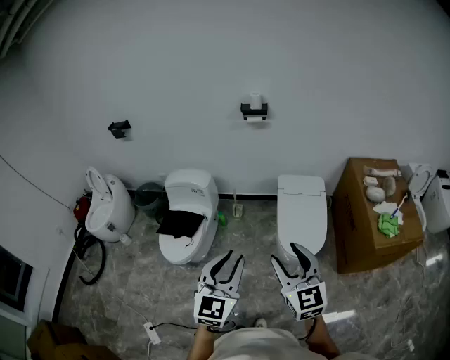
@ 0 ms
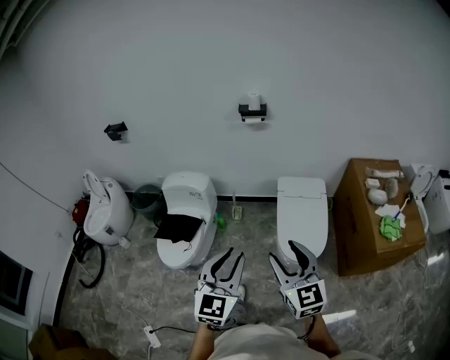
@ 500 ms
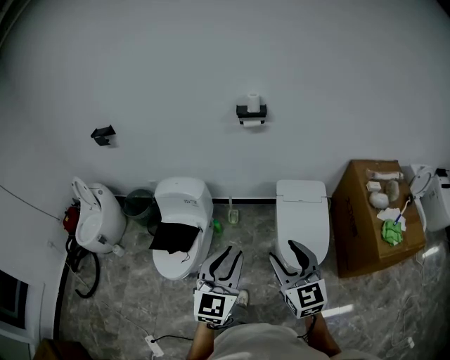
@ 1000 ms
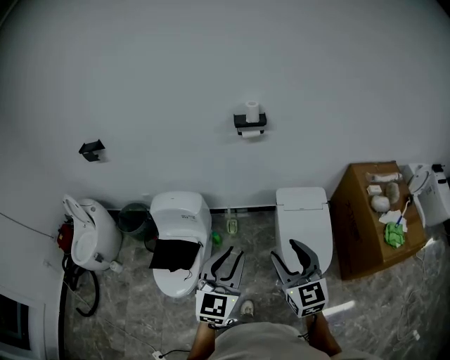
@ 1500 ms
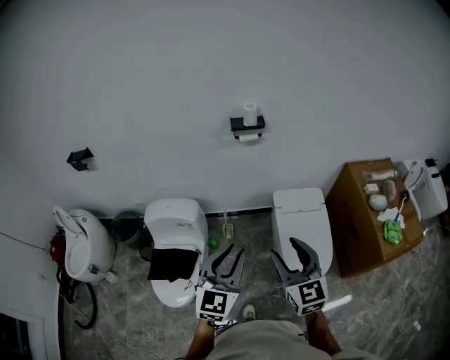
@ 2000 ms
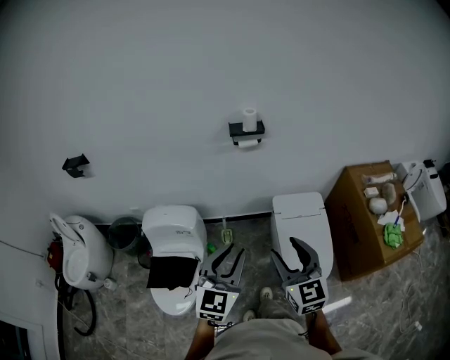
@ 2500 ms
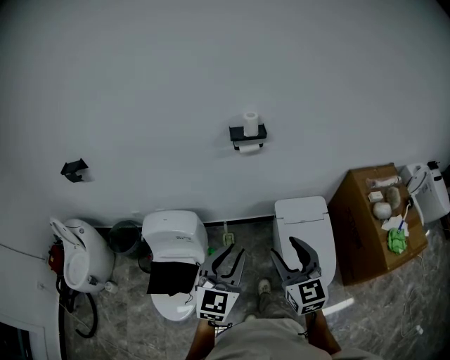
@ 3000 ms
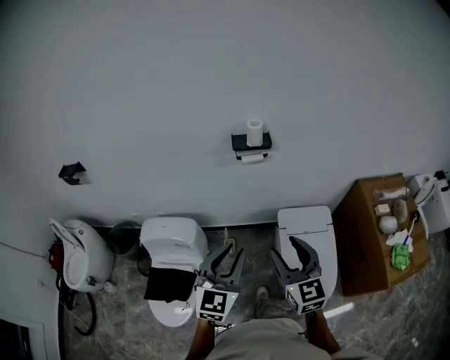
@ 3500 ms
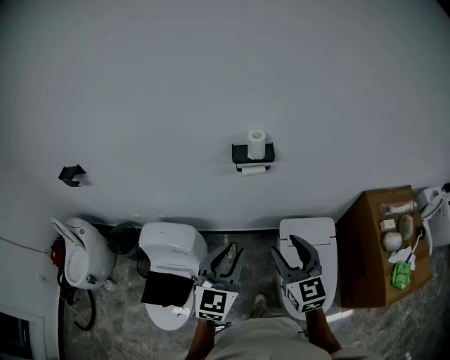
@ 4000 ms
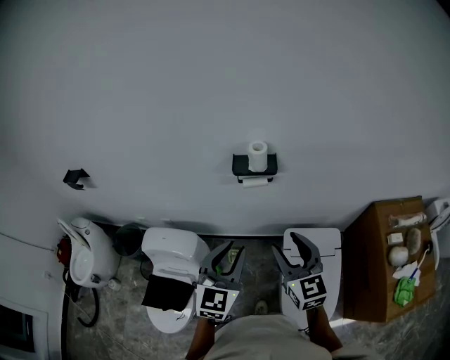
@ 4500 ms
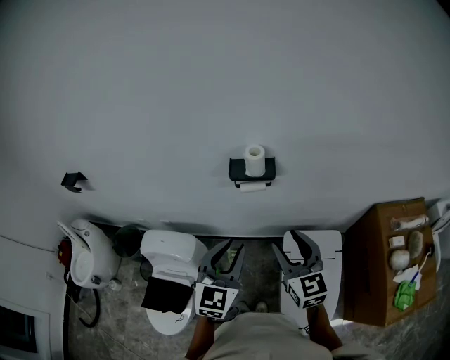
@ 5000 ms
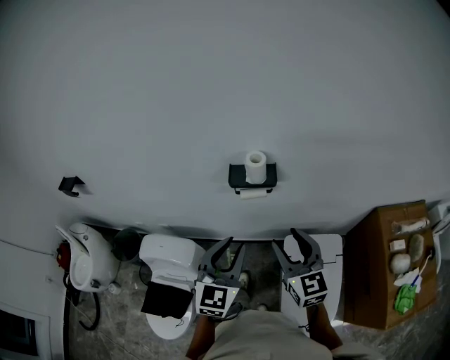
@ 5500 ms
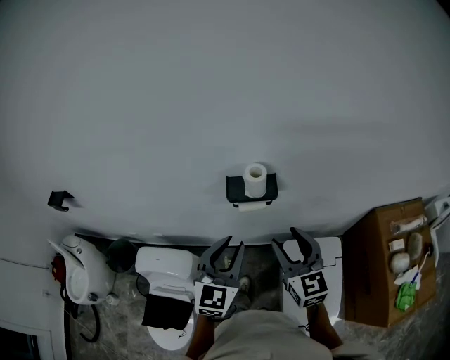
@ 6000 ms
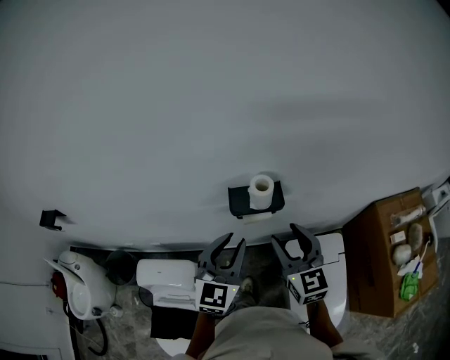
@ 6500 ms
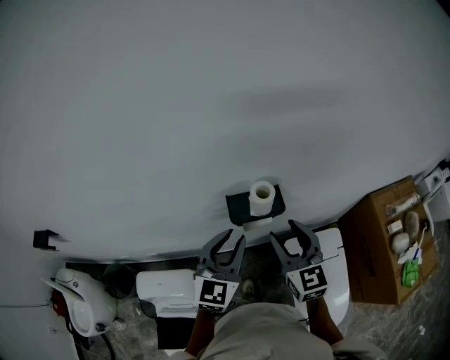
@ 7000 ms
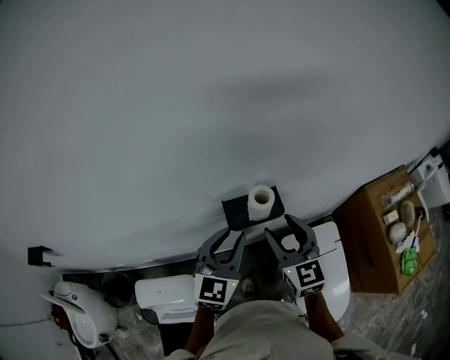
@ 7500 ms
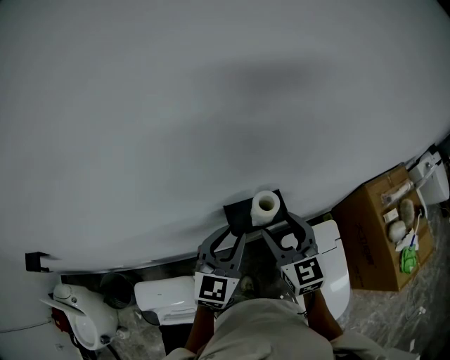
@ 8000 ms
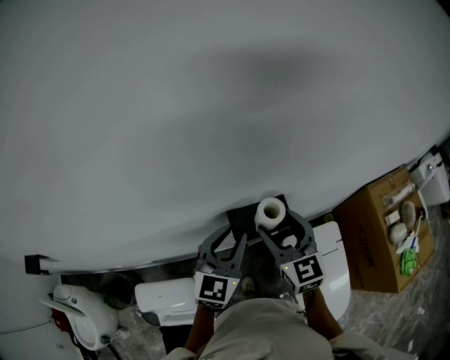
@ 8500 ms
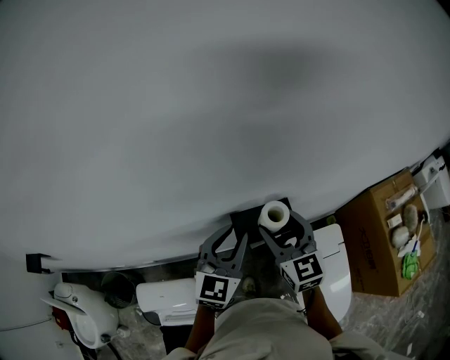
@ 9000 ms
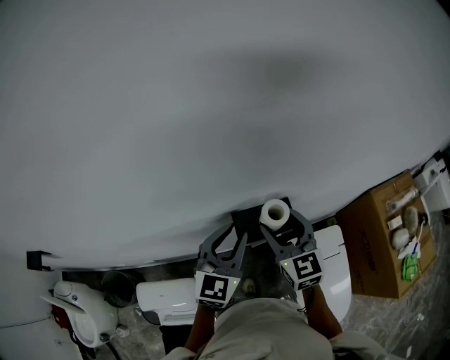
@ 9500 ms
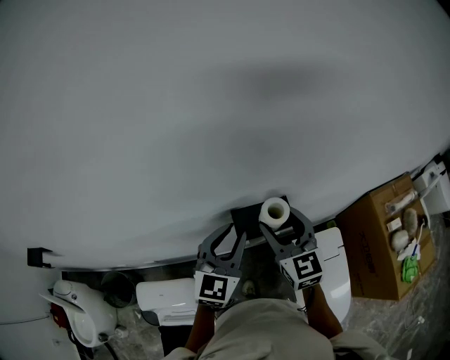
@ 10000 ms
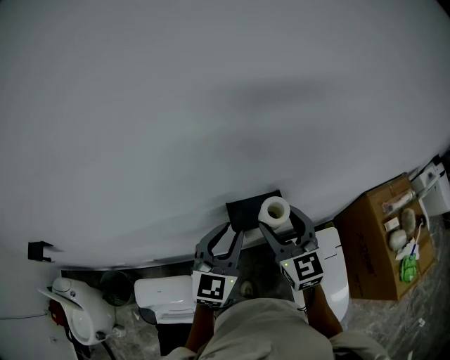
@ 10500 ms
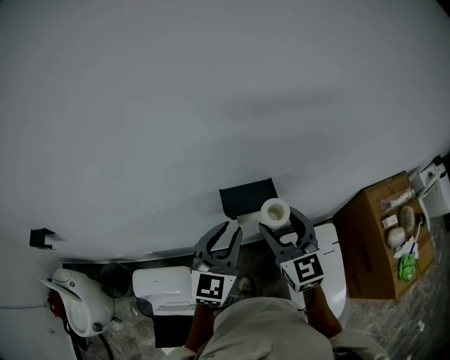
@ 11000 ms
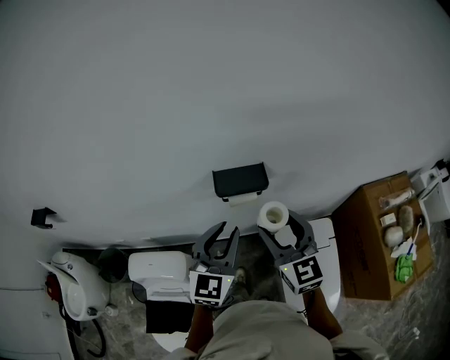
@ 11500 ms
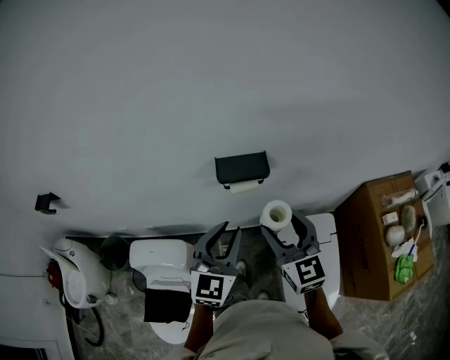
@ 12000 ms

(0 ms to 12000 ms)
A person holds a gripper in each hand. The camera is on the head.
0 ms - 2000 ms: The grippers both shift forward by roughly 30 cm.
2000 ms - 4000 ms: Both grippers travel together forward, roughly 25 cm.
4000 ms - 6000 ms: The grippers both shift forward by some 20 cm.
6000 ms - 8000 ms: The left gripper is displaced forward by roughly 15 cm; the right gripper goes some 15 cm forward and to the left.
8000 ms - 10000 ms: The grippers stay close to where they were, moving slightly.
10000 ms - 12000 ms: The two grippers go some 15 cm backward.

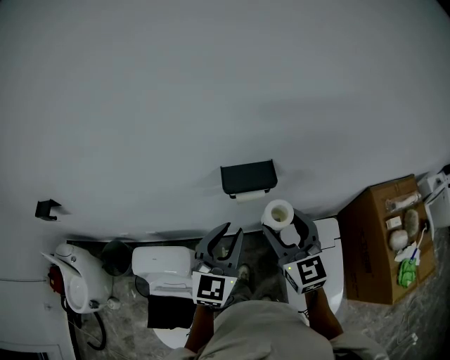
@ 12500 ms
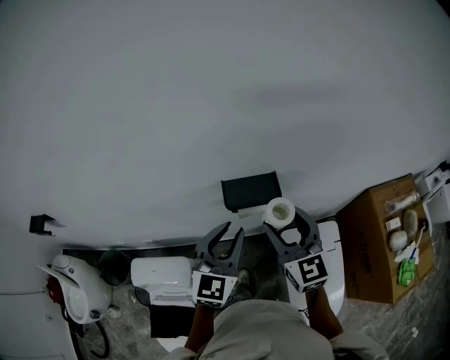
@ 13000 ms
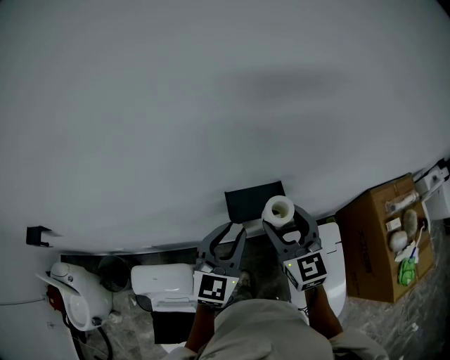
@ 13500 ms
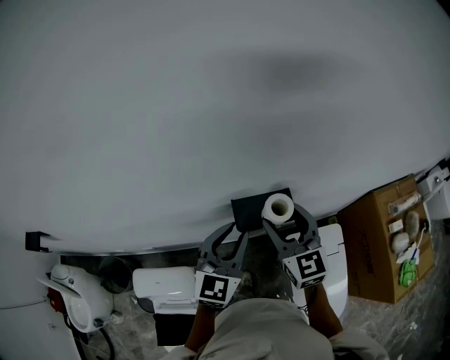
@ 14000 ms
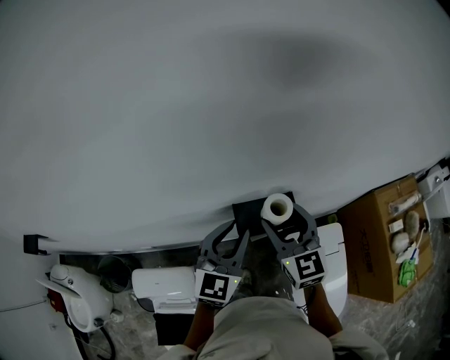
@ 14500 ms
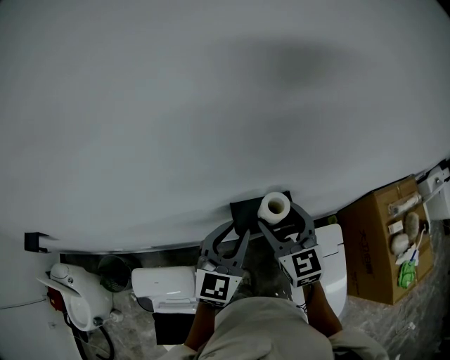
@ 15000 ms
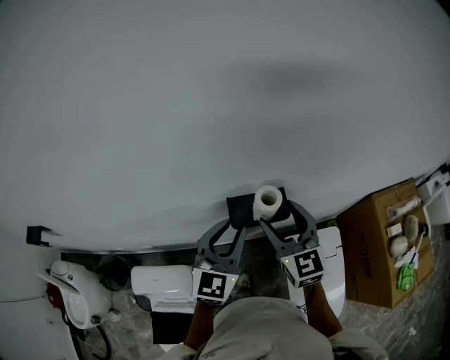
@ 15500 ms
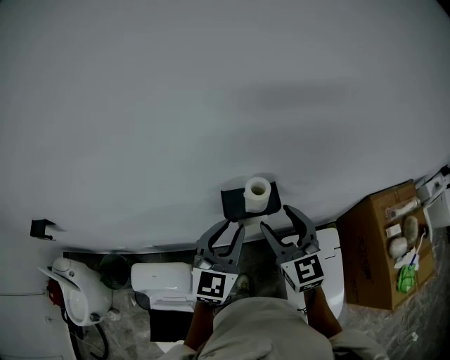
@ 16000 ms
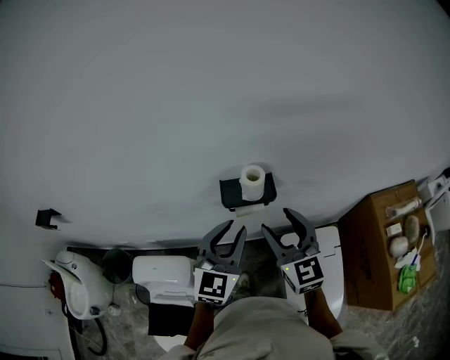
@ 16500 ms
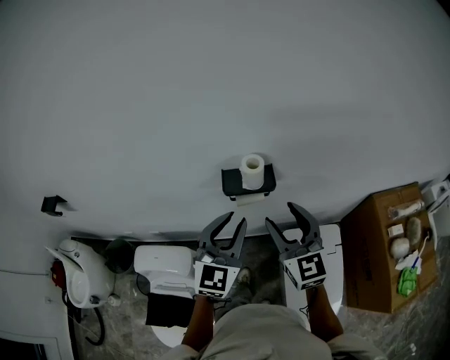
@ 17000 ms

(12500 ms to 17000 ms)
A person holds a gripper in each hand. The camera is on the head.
12500 ms - 14500 ms: Both grippers move forward, about 15 cm.
14500 ms - 17000 ms: The two grippers go approximately 15 cm backward and to the right.

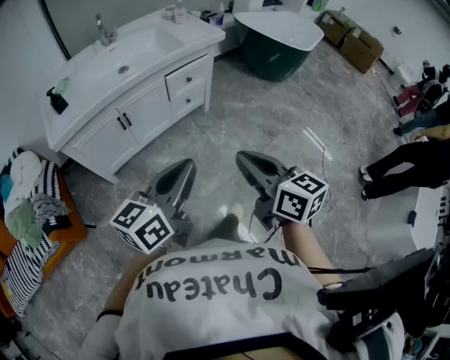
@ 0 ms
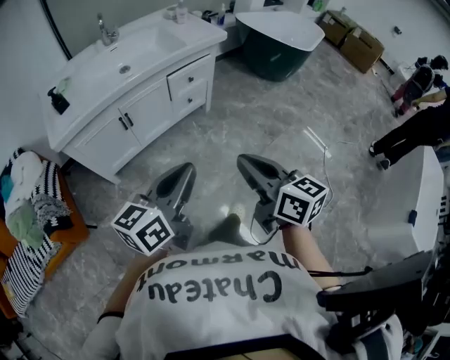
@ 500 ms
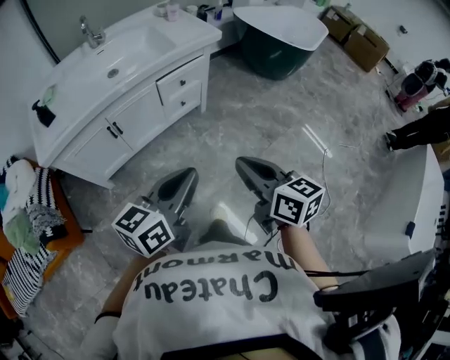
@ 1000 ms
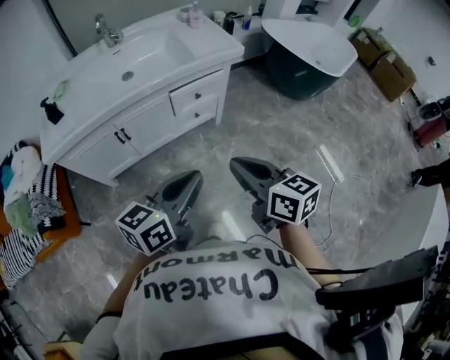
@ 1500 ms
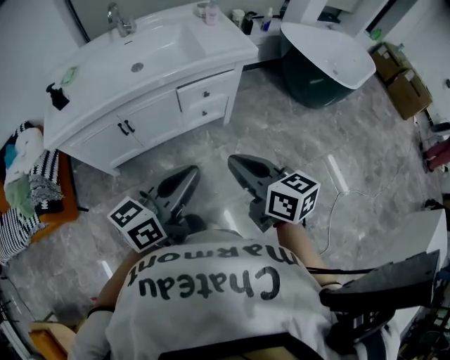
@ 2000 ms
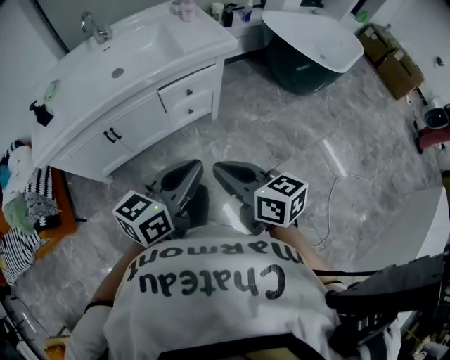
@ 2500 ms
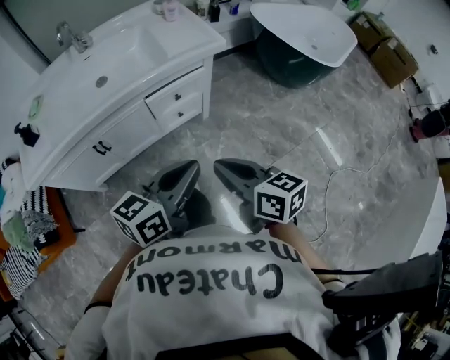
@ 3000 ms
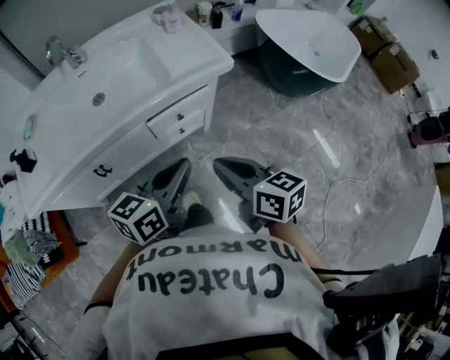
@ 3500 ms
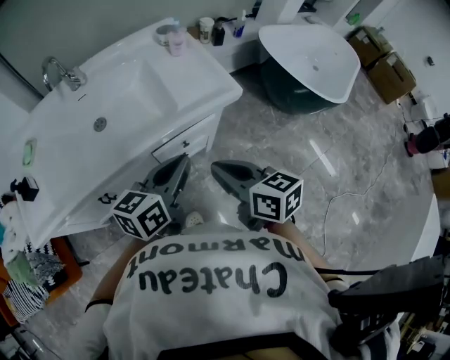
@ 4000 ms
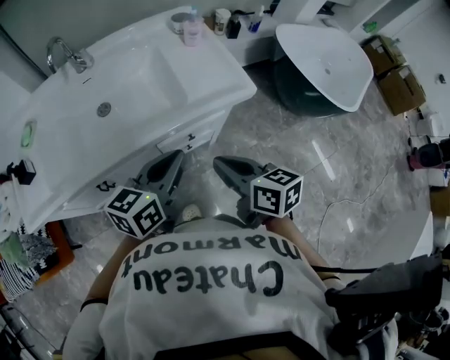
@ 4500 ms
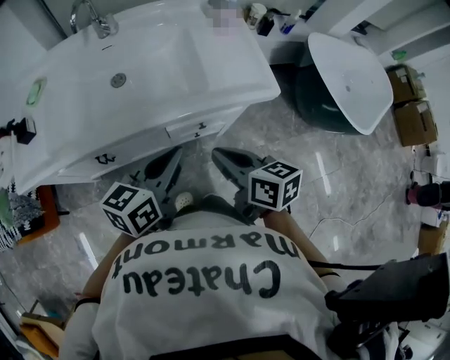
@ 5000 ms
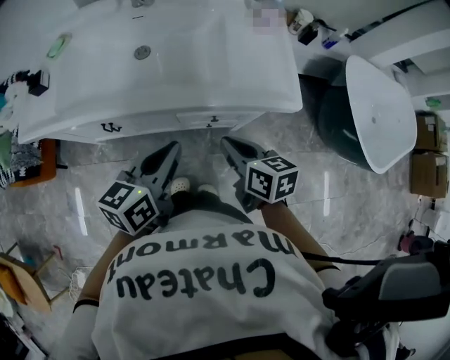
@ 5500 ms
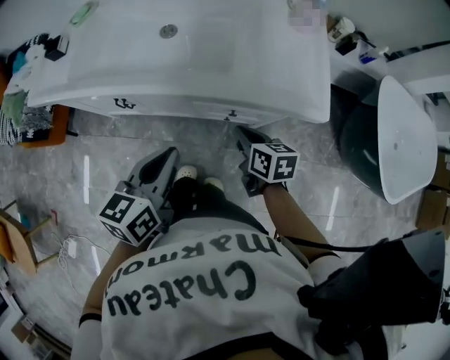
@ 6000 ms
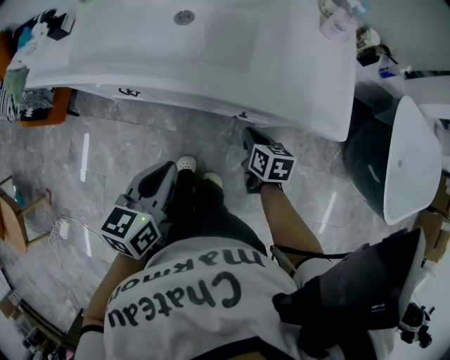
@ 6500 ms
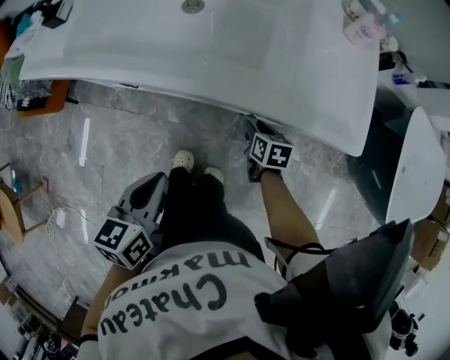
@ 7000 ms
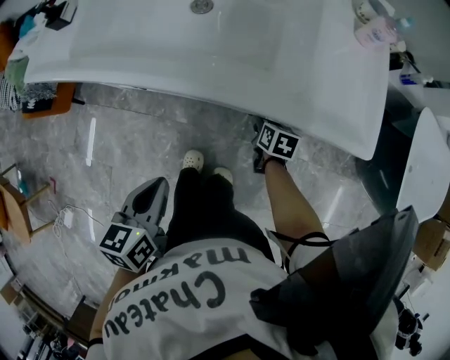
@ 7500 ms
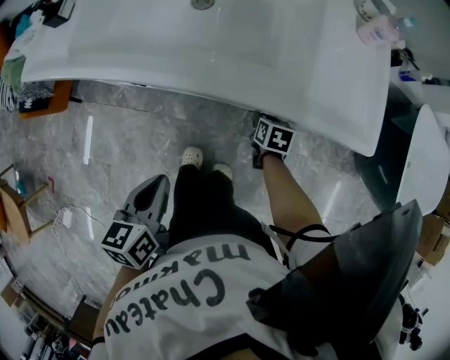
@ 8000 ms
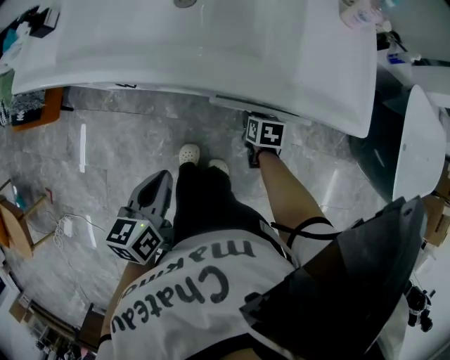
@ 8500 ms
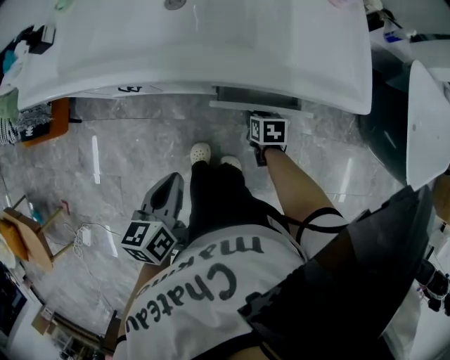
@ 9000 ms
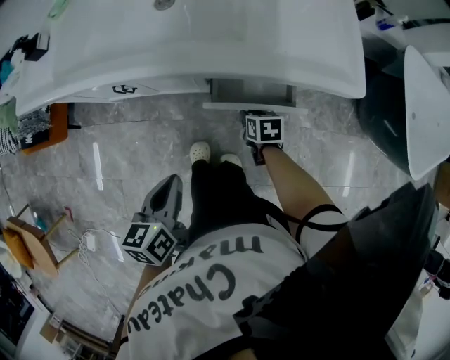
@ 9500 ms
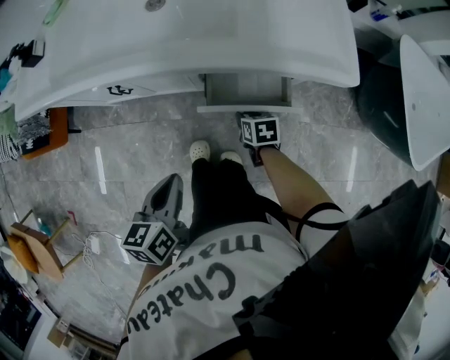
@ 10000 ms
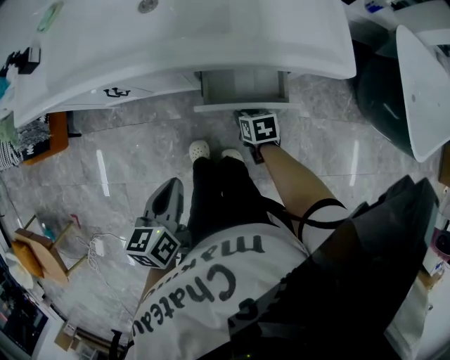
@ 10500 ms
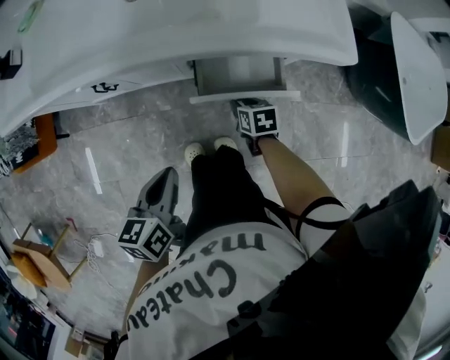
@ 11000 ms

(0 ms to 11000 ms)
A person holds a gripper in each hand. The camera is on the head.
0 ms - 2000 ms: The right gripper travels forward by roughly 20 cm. Meanwhile the left gripper moves forward and to the right, some 20 cm.
2000 ms - 3500 ms: The two grippers go some 20 cm forward.
3500 ms - 5500 ms: The right gripper heads forward and downward, covering approximately 20 cm, and swivels about 20 degrees, while the left gripper heads forward and to the left, covering about 15 cm, and turns by roughly 30 degrees.
5500 ms - 7500 ms: The left gripper heads downward, to the left and backward, covering roughly 20 cm, and swivels approximately 30 degrees. The right gripper travels downward by some 30 cm, changes its angle by approximately 20 degrees, and opens its fingers.
7500 ms - 9000 ms: The right gripper shifts about 5 cm backward.
9000 ms - 11000 ms: The right gripper travels backward by approximately 5 cm.
